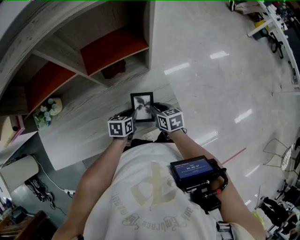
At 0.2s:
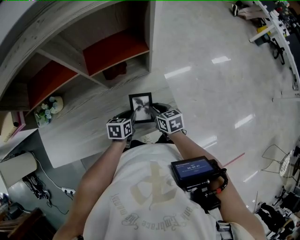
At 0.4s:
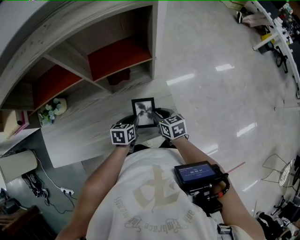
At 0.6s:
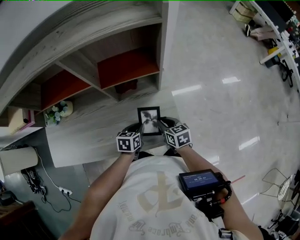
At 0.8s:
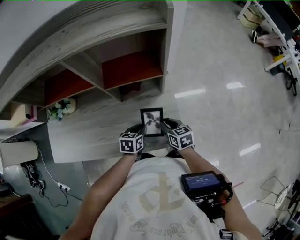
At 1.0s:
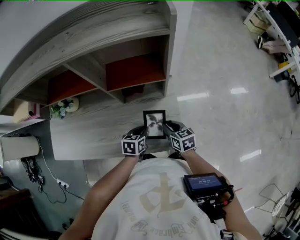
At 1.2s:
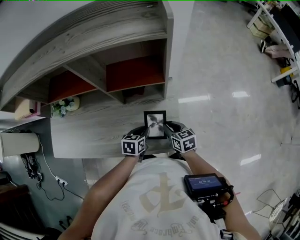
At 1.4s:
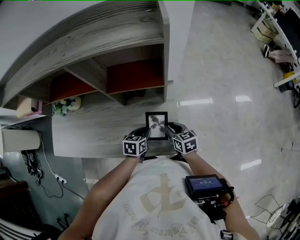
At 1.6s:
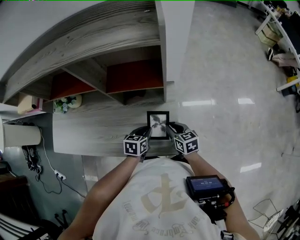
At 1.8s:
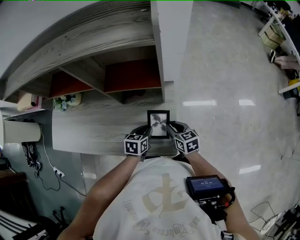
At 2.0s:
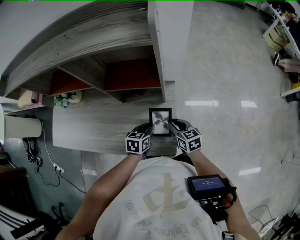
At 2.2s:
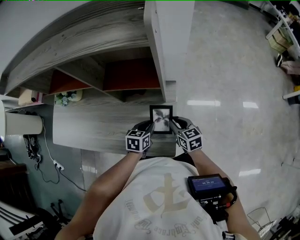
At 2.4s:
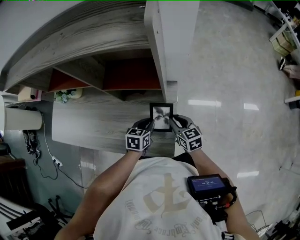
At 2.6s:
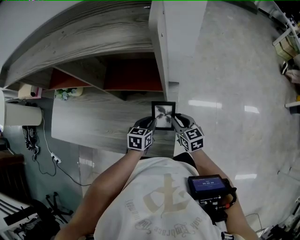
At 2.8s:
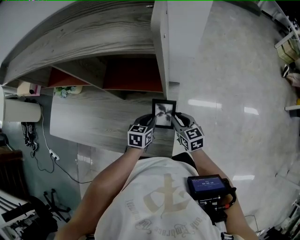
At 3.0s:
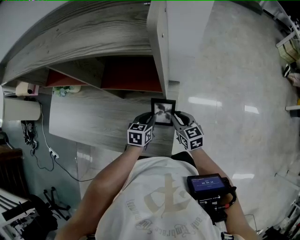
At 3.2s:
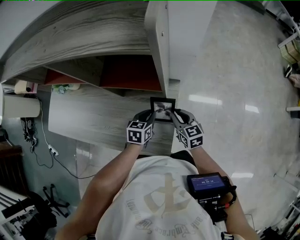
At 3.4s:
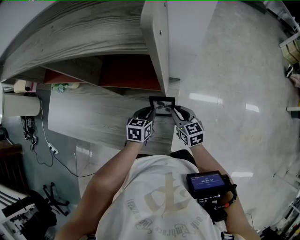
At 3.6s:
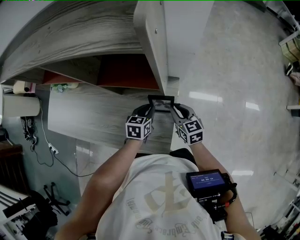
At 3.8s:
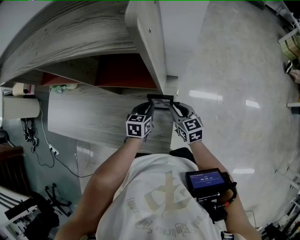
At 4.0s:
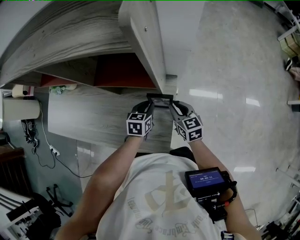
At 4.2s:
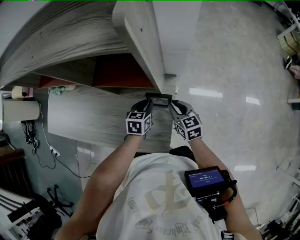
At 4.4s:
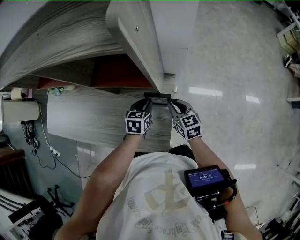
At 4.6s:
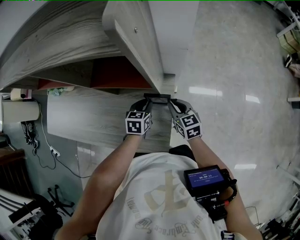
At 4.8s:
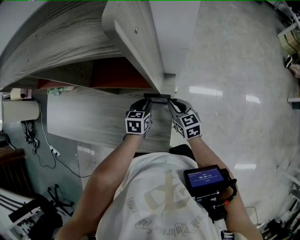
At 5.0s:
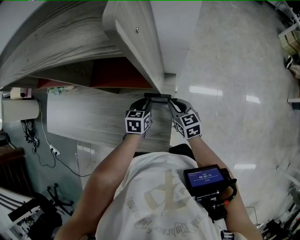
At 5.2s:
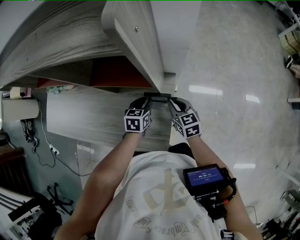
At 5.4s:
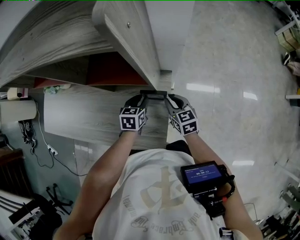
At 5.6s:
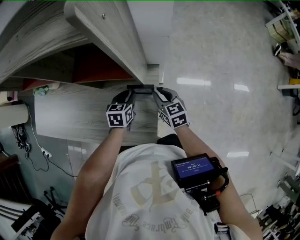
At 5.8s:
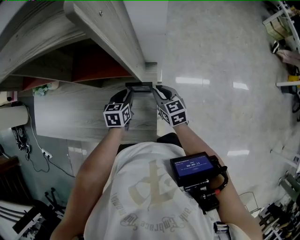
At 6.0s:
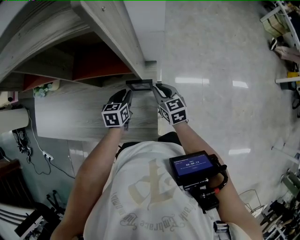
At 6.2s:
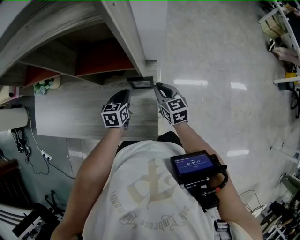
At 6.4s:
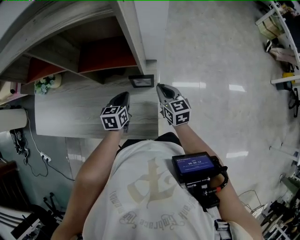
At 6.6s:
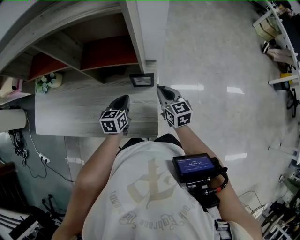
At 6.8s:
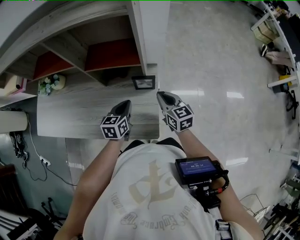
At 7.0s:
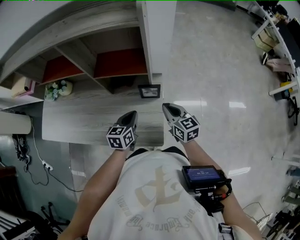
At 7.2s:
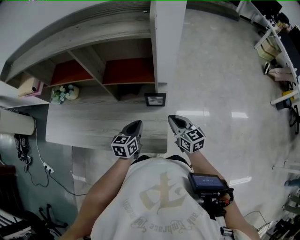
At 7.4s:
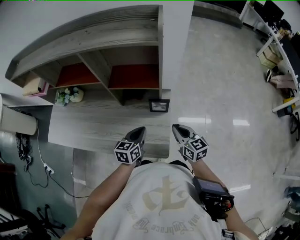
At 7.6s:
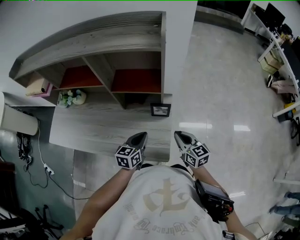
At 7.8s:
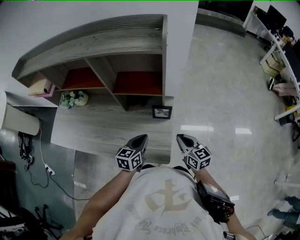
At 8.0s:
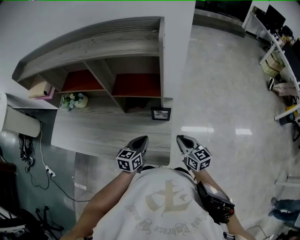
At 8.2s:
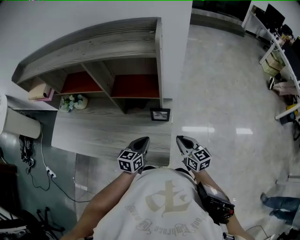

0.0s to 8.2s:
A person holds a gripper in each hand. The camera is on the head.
0.0s to 1.6s: The right gripper goes roughly 10 cm to the right, forward and upward, and rotates about 20 degrees, while the left gripper is displaced to the right and upward by approximately 10 cm.
1.6s to 3.2s: The two grippers go about 10 cm forward and to the right.
3.2s to 5.0s: There are only small adjustments of the grippers.
5.0s to 6.6s: The left gripper travels backward and upward by some 10 cm. The right gripper travels upward and backward by about 10 cm.
6.6s to 8.2s: The left gripper is displaced backward and upward by about 10 cm. The right gripper travels backward by roughly 10 cm.

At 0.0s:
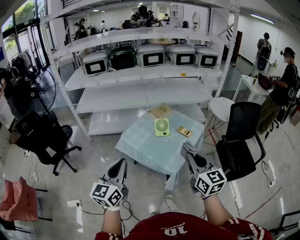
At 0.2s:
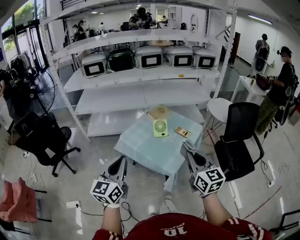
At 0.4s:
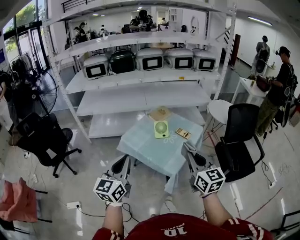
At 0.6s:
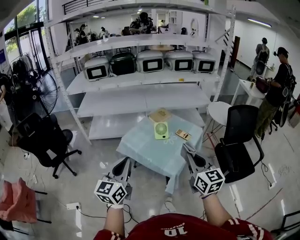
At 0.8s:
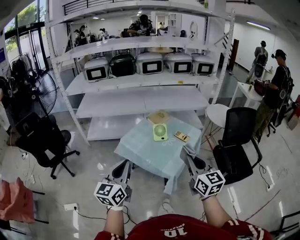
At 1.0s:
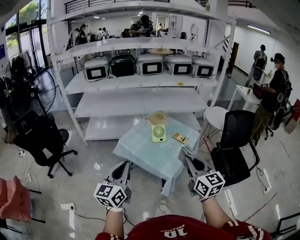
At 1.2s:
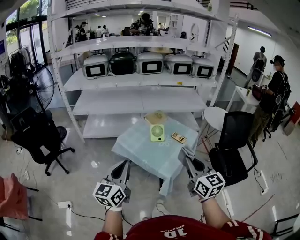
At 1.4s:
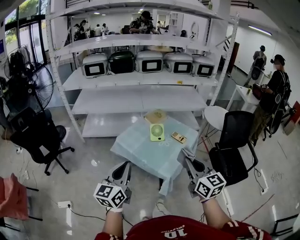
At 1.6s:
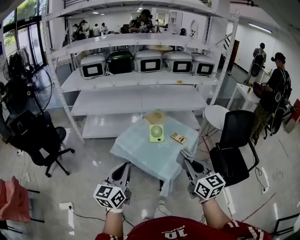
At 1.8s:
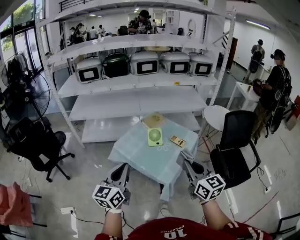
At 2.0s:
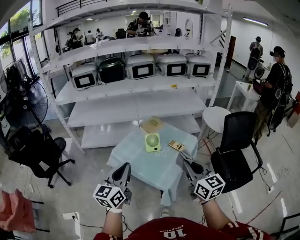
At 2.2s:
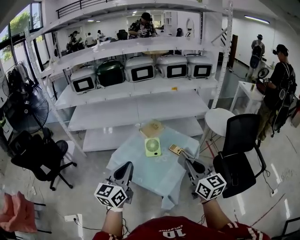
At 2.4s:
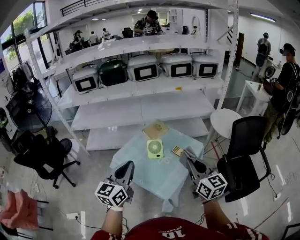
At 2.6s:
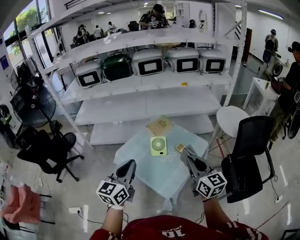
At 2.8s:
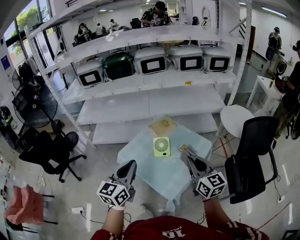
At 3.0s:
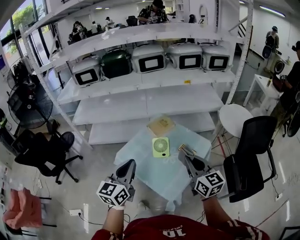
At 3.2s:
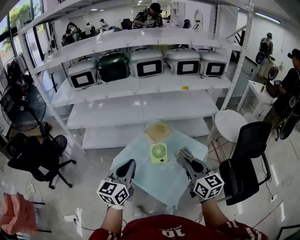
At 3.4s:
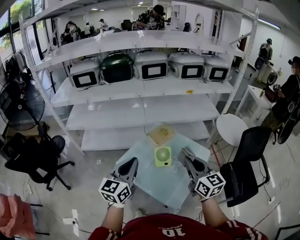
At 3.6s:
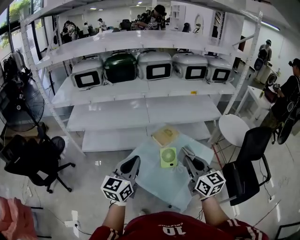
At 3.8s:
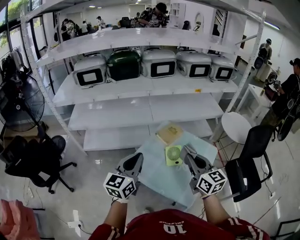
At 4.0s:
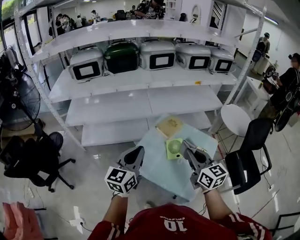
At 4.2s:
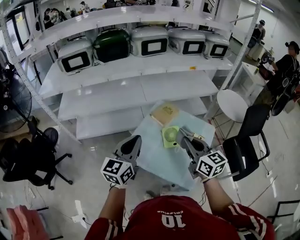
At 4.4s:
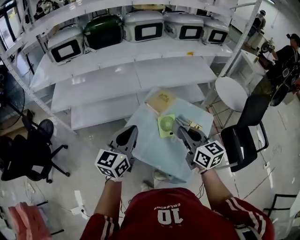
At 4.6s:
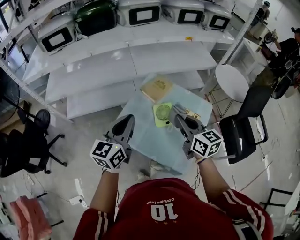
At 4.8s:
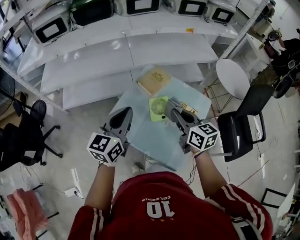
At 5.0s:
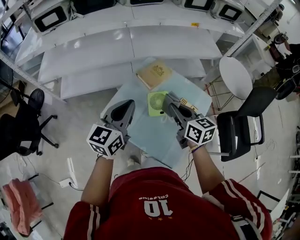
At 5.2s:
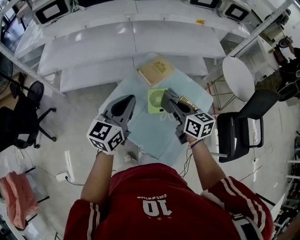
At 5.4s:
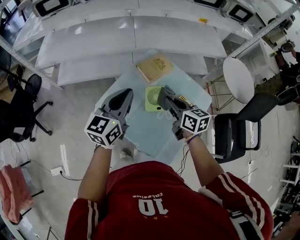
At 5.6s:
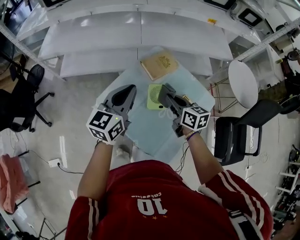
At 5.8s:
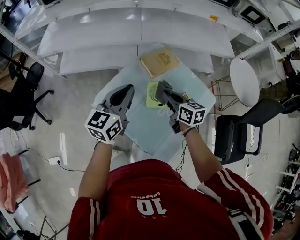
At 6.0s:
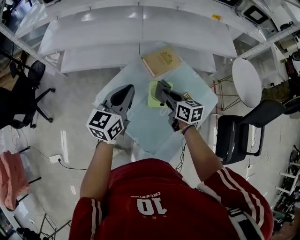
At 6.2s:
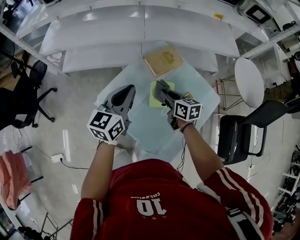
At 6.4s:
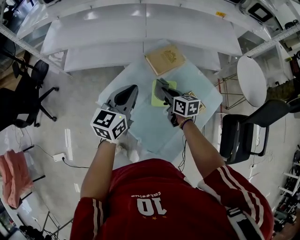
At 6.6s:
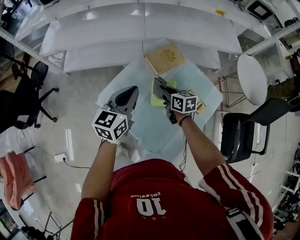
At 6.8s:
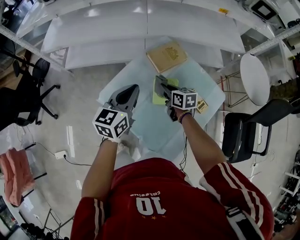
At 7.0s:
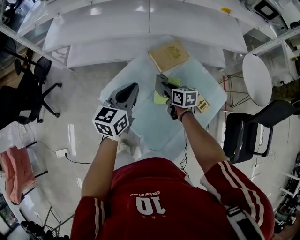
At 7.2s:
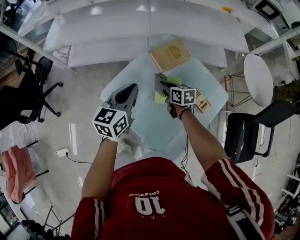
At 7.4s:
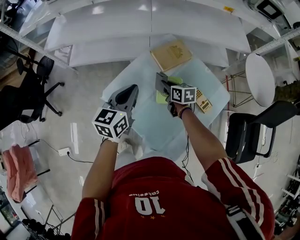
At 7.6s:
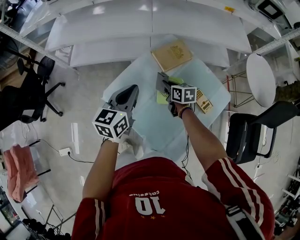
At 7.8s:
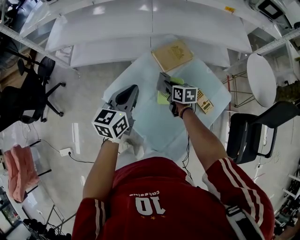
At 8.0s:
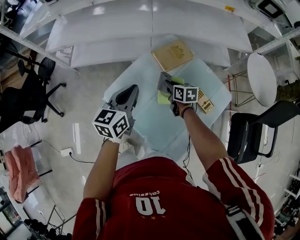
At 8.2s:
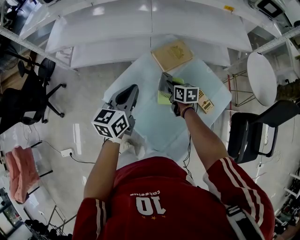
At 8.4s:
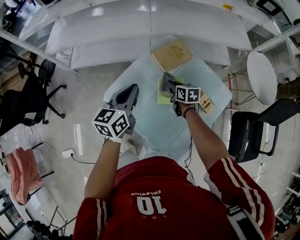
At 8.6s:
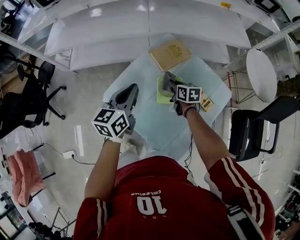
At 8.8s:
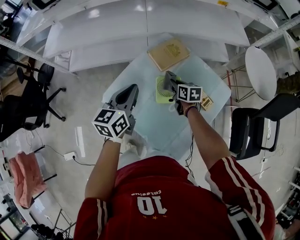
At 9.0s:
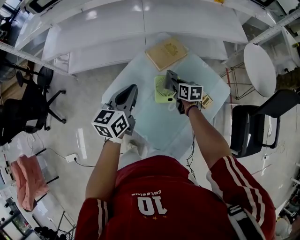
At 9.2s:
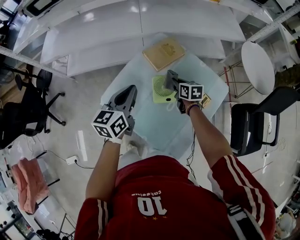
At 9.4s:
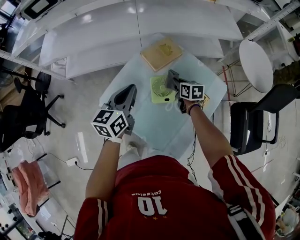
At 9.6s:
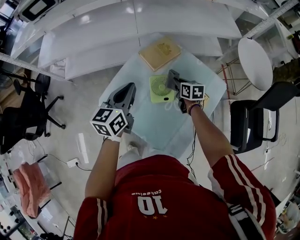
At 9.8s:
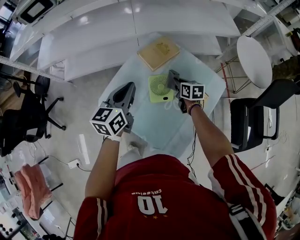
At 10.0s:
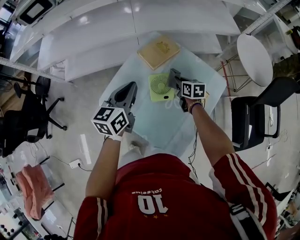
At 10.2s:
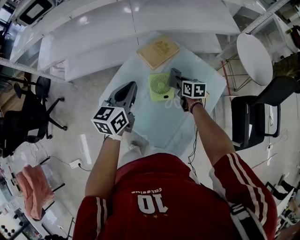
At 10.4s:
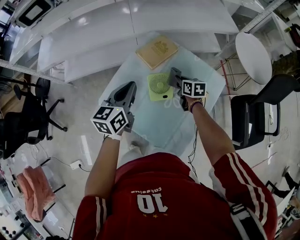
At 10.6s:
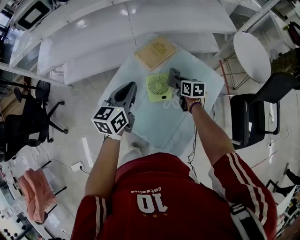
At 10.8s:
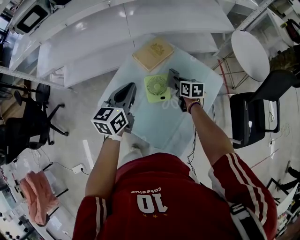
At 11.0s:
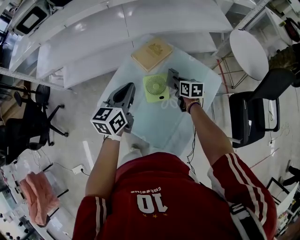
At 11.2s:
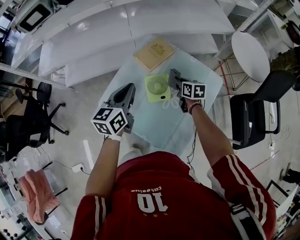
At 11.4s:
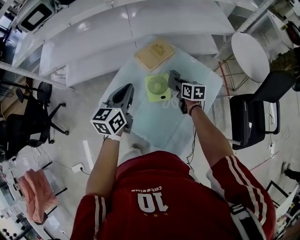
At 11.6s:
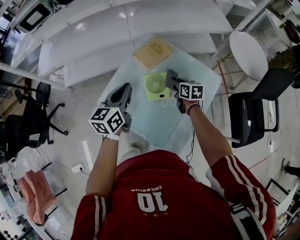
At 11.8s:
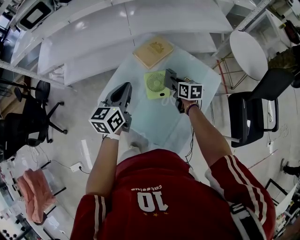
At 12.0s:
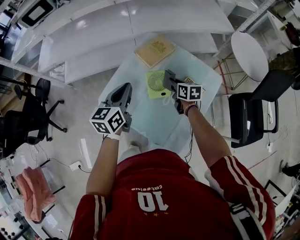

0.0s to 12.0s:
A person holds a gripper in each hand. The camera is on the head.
0.0s to 1.6s: The grippers make only small movements.
1.6s to 3.0s: Both grippers travel together forward, about 25 cm.
3.0s to 4.4s: The left gripper is displaced forward and to the left by about 20 cm. Meanwhile the right gripper heads to the left and forward, covering approximately 20 cm.
4.4s to 6.0s: The right gripper shifts some 25 cm downward and forward, and rotates about 30 degrees; the left gripper shifts some 20 cm downward, forward and to the right.
6.0s to 7.6s: The right gripper travels downward and forward by some 15 cm. Meanwhile the left gripper is displaced downward by roughly 5 cm.
7.6s to 9.0s: The right gripper goes some 5 cm to the right.
9.0s to 10.4s: The right gripper shifts approximately 5 cm to the right.
10.4s to 12.0s: The right gripper changes place by approximately 5 cm.

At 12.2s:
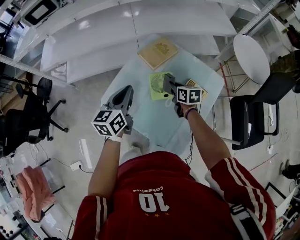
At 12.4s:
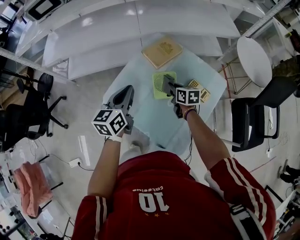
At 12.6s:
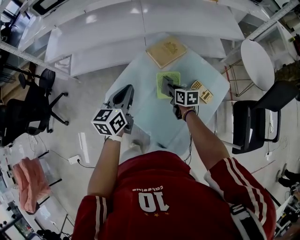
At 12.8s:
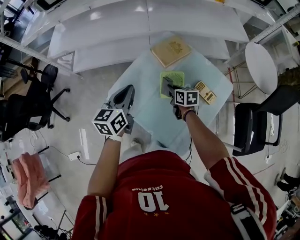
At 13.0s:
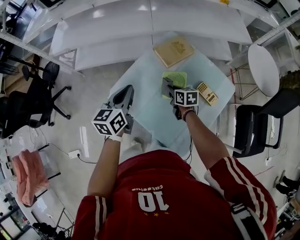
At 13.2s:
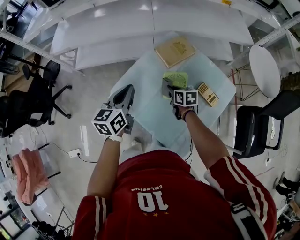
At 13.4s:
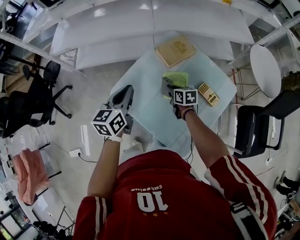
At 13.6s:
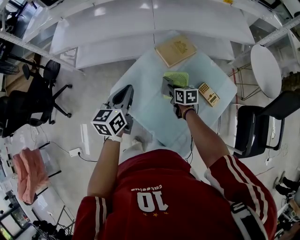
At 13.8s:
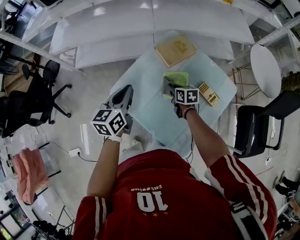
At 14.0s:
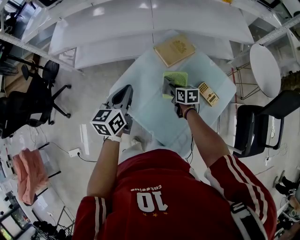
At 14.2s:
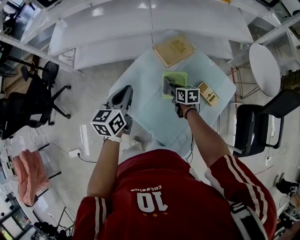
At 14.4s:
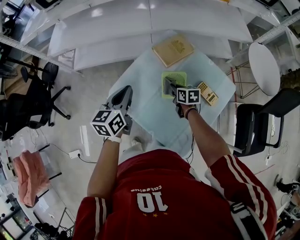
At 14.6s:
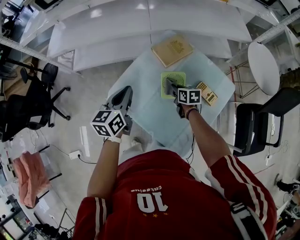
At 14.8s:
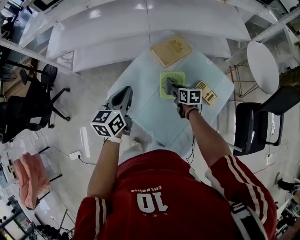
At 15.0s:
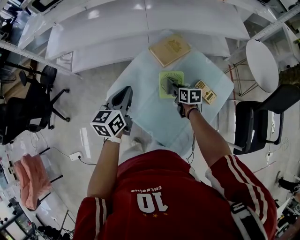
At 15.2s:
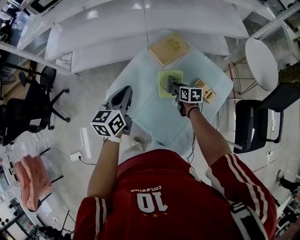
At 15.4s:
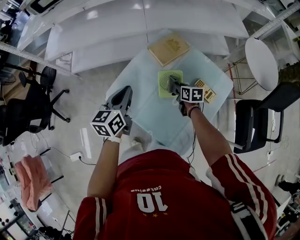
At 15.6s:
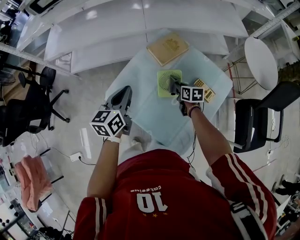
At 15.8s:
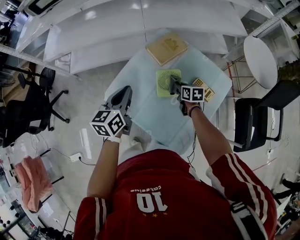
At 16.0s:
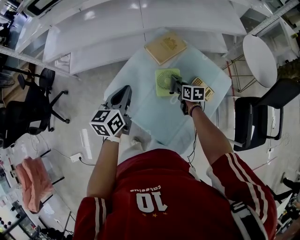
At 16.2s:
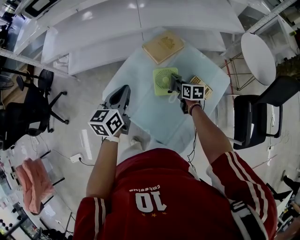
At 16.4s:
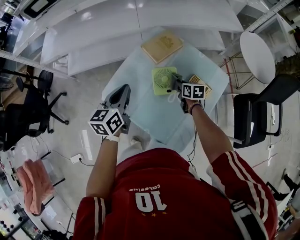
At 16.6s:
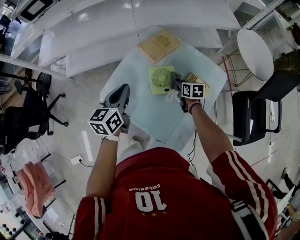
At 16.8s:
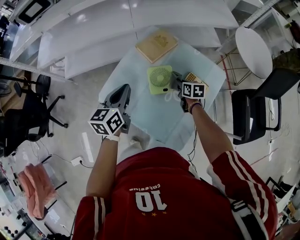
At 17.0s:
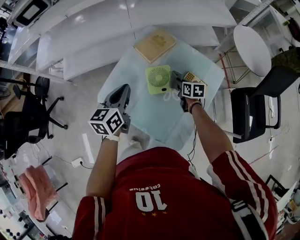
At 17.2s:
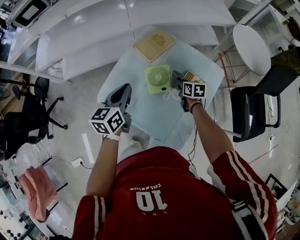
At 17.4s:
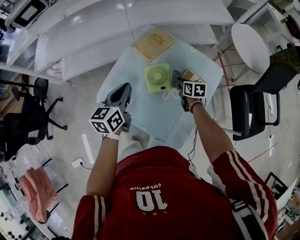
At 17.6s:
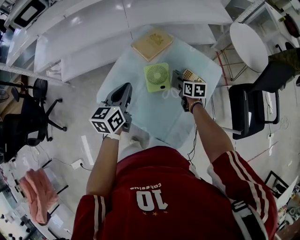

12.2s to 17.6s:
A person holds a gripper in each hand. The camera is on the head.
12.2s to 13.6s: The left gripper goes roughly 5 cm to the left, while the right gripper is displaced to the left and downward by some 10 cm.
13.6s to 15.0s: The right gripper moves to the right, some 5 cm.
15.0s to 16.2s: The right gripper heads to the right, covering about 5 cm.
16.2s to 17.6s: The right gripper shifts some 5 cm to the right.
